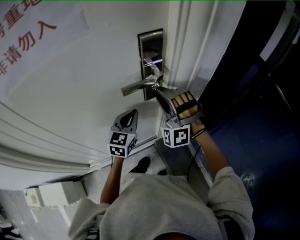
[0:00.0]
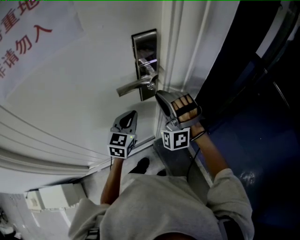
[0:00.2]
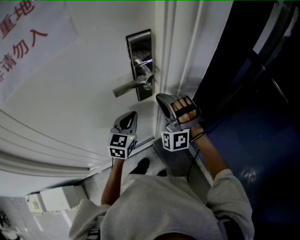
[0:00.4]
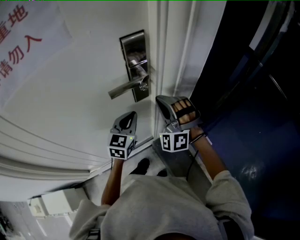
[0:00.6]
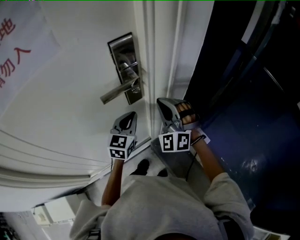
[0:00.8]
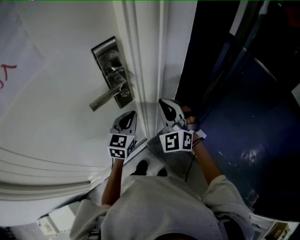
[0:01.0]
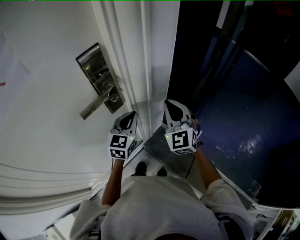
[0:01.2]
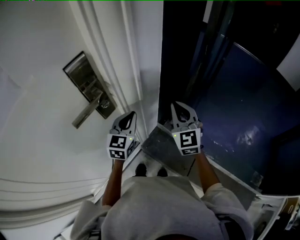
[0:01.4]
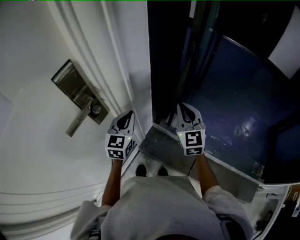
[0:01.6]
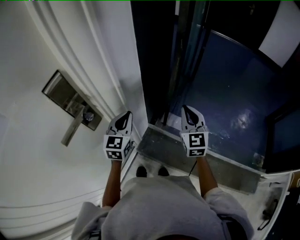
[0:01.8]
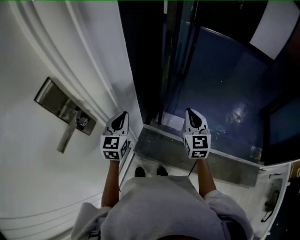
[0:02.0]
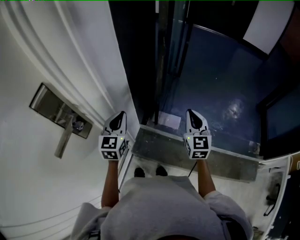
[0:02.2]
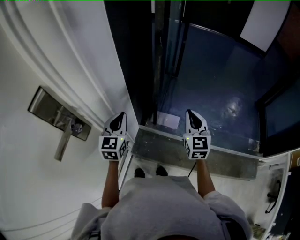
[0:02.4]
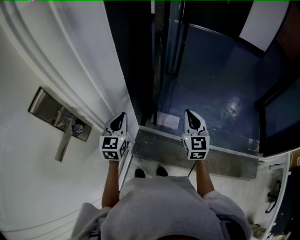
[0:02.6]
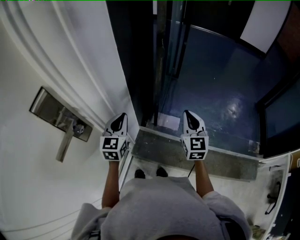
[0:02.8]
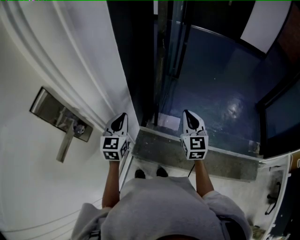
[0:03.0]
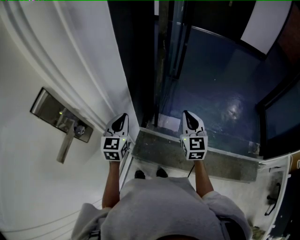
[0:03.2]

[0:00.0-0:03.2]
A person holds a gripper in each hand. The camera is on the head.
0:00.0 to 0:01.6: The left gripper changes place by roughly 20 cm, and swivels roughly 30 degrees, while the right gripper ends up about 30 cm from where it was, rotates around the line of its fingers by some 70 degrees, clockwise from behind, and closes up.
0:01.6 to 0:03.2: The right gripper is displaced to the right by some 10 cm, and rotates roughly 20 degrees; the left gripper changes place by approximately 5 cm.

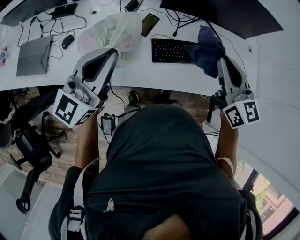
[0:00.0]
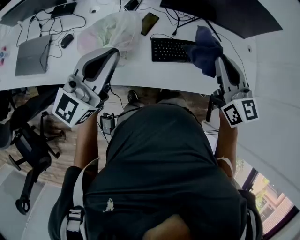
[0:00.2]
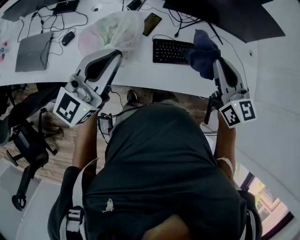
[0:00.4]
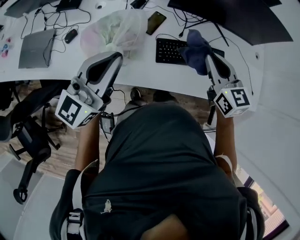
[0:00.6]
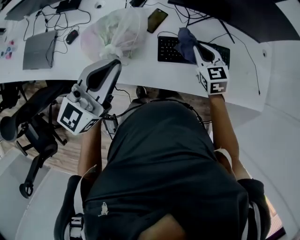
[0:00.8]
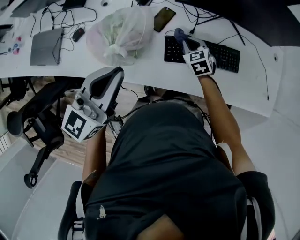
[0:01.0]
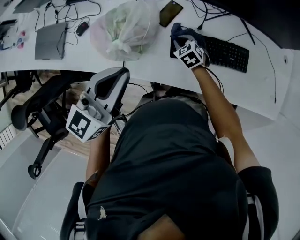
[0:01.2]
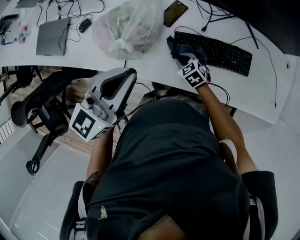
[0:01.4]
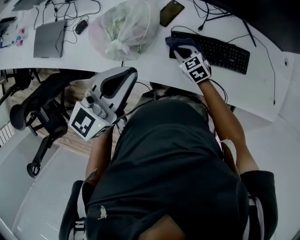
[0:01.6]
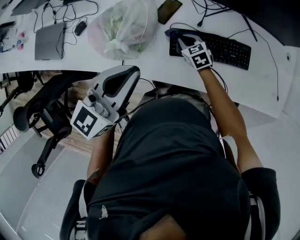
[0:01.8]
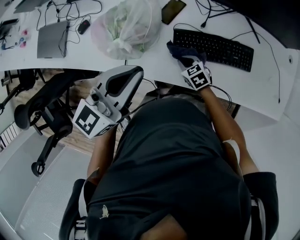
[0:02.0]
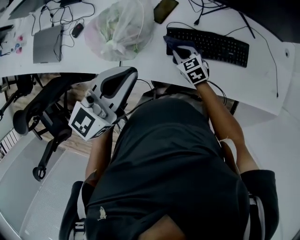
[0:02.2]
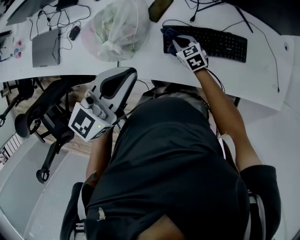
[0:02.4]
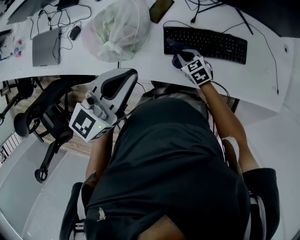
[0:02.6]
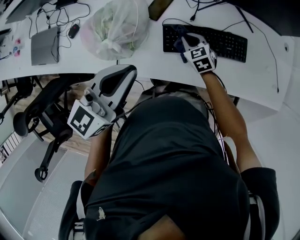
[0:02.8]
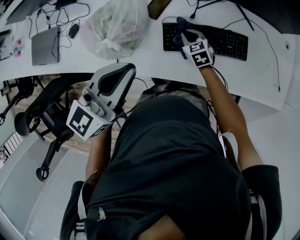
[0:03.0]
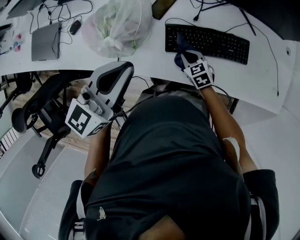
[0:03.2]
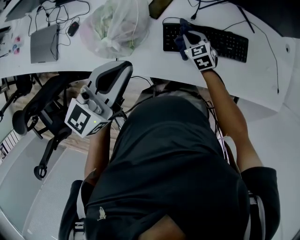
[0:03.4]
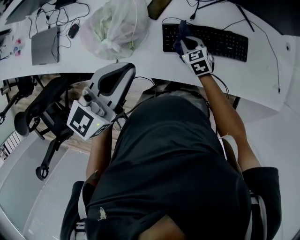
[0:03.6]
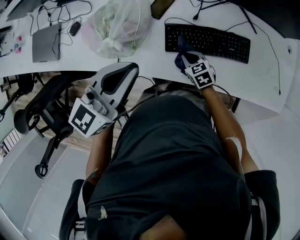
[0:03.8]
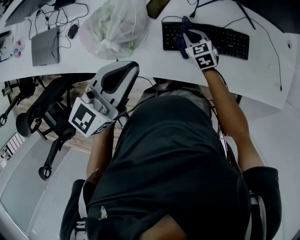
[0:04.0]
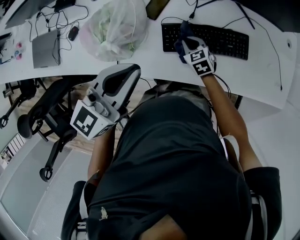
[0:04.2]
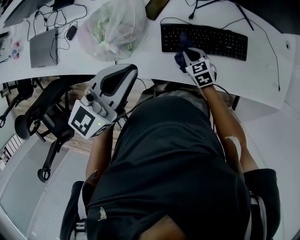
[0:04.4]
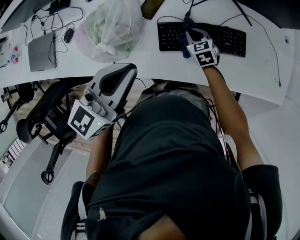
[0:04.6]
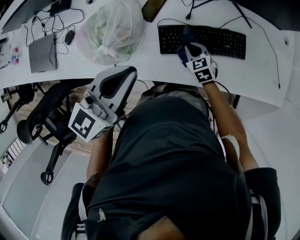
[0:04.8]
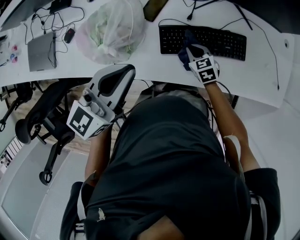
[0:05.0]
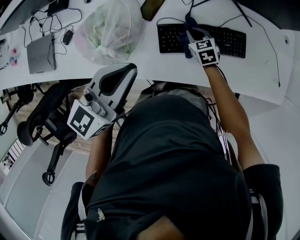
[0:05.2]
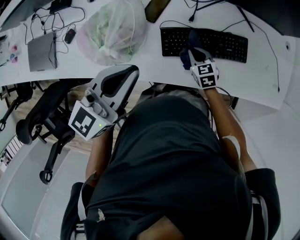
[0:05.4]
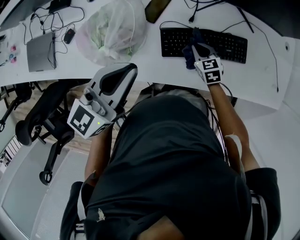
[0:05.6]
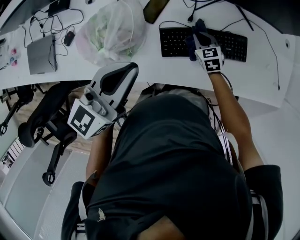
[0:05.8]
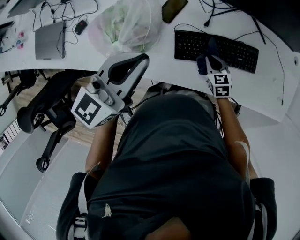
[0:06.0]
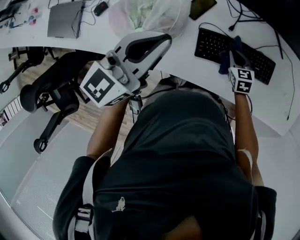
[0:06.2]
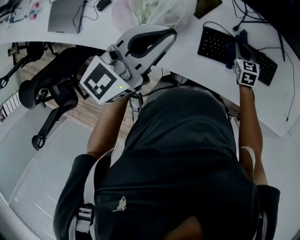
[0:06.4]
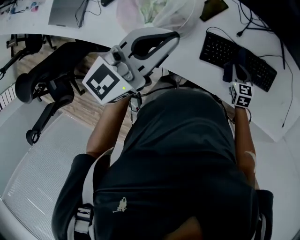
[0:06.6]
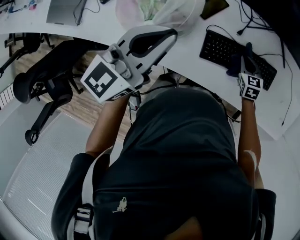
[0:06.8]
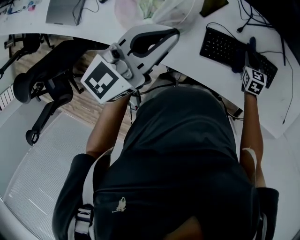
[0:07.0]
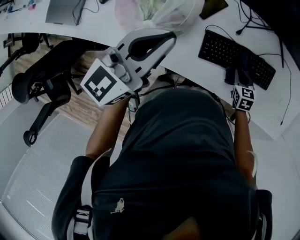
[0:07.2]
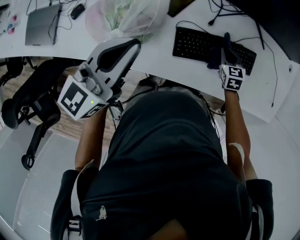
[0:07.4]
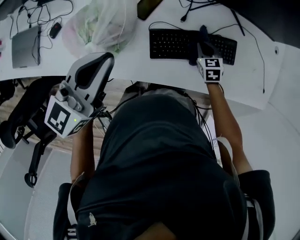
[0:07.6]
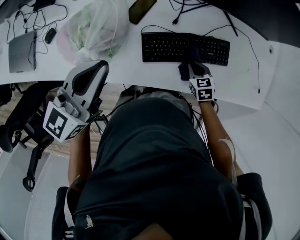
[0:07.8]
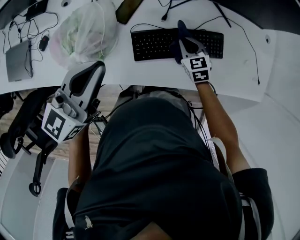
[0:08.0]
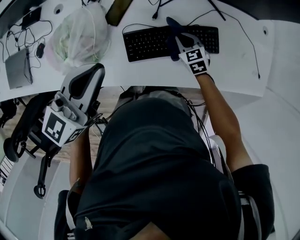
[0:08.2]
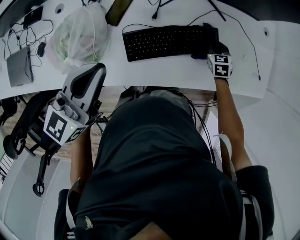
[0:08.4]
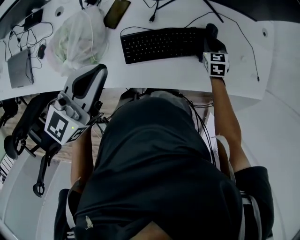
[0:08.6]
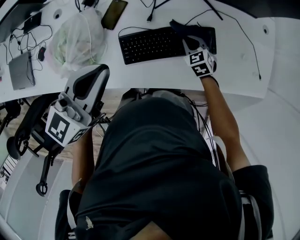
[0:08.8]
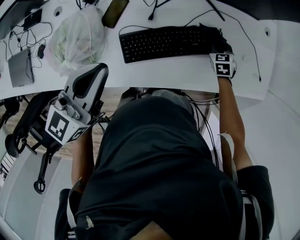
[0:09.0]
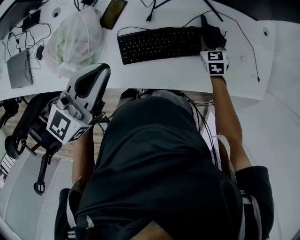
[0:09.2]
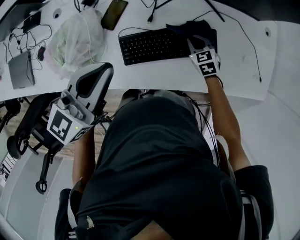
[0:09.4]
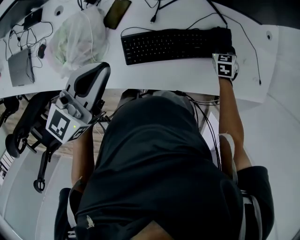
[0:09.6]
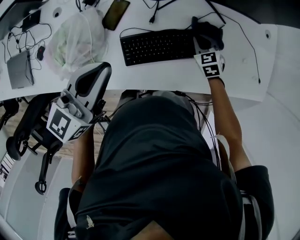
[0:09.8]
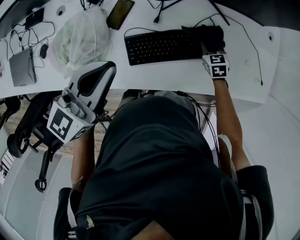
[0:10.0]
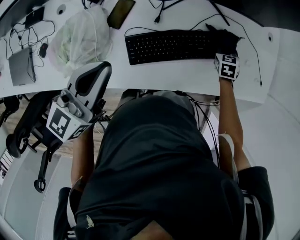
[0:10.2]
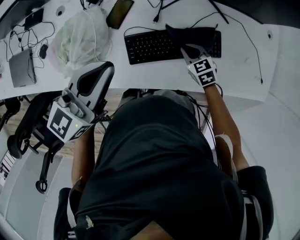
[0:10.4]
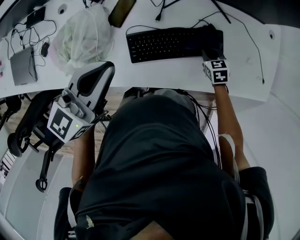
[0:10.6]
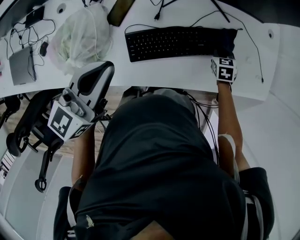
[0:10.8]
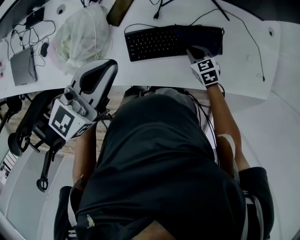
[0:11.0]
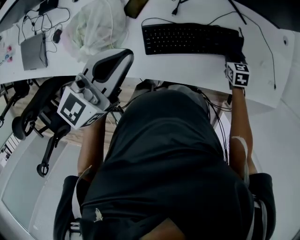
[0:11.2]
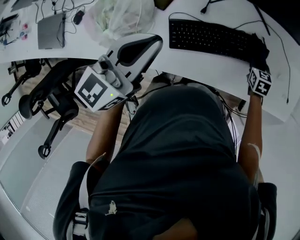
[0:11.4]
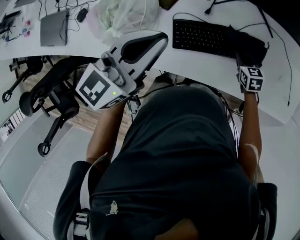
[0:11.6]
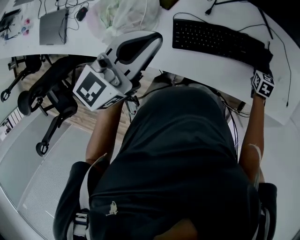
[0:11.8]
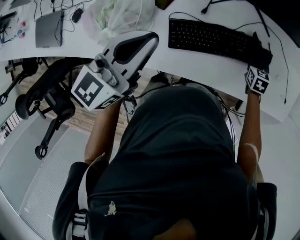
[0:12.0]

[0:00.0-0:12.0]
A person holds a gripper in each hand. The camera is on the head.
0:00.0 to 0:01.6: The right gripper shifts about 40 cm downward, and angles its fingers downward, by roughly 40 degrees. Meanwhile the left gripper moves to the right and downward, roughly 10 cm.
0:01.6 to 0:03.0: The right gripper goes forward and backward, some 10 cm each way, reversing 4 times.
0:03.0 to 0:04.4: The right gripper moves forward and backward over approximately 10 cm, changing direction 4 times.
0:04.4 to 0:06.0: The left gripper shifts roughly 5 cm forward. The right gripper goes forward and backward, about 10 cm each way, reversing 5 times.
0:06.0 to 0:07.6: The right gripper moves forward and backward over some 10 cm, changing direction 4 times.
0:07.6 to 0:09.0: The left gripper travels to the right by roughly 10 cm, while the right gripper moves left and right over approximately 20 cm, changing direction 2 times.
0:09.0 to 0:10.4: The right gripper moves left and right over approximately 15 cm, changing direction 4 times, and swivels about 30 degrees.
0:10.4 to 0:12.0: The right gripper moves left and right over some 15 cm, changing direction 4 times, and turns by about 30 degrees.

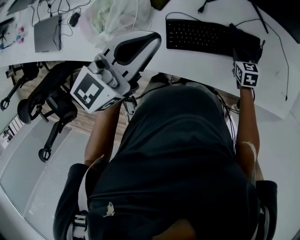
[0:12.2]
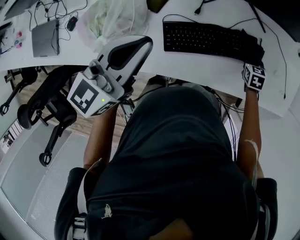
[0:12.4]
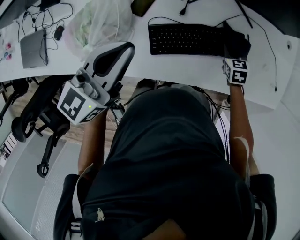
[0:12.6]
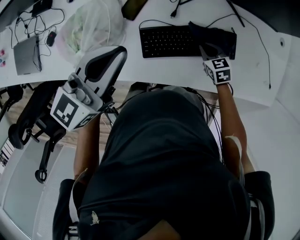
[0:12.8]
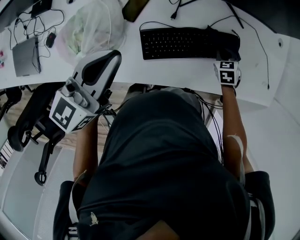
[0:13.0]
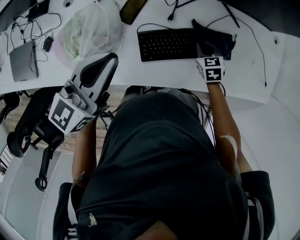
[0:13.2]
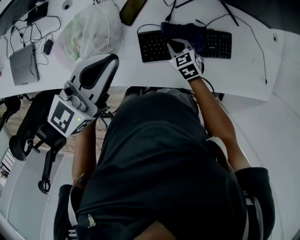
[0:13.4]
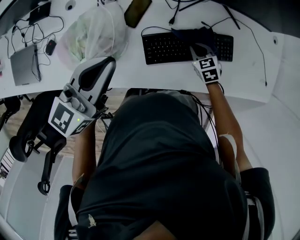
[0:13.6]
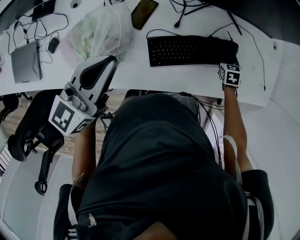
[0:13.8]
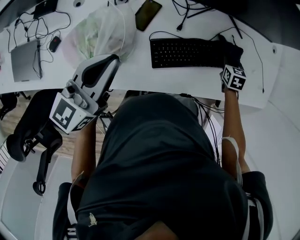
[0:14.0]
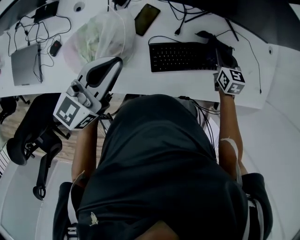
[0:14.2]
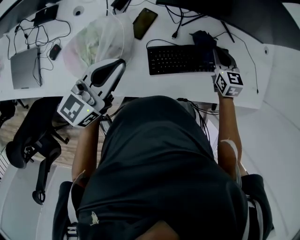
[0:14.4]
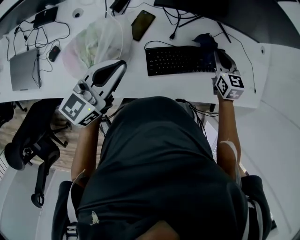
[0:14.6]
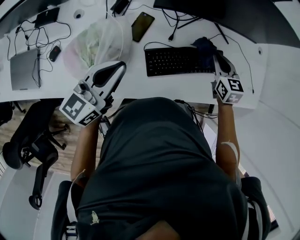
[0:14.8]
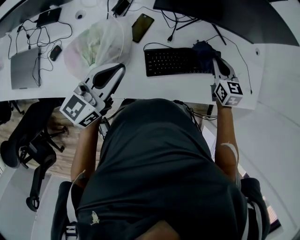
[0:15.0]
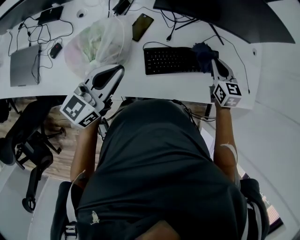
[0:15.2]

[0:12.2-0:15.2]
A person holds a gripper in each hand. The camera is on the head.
0:12.2 to 0:13.8: The left gripper moves to the left, roughly 10 cm, while the right gripper swings left and right, about 25 cm each way, with 4 reversals.
0:13.8 to 0:15.2: The left gripper travels backward by approximately 5 cm; the right gripper goes about 20 cm upward and to the left, and rotates about 30 degrees.

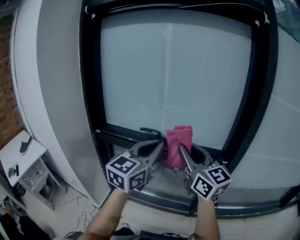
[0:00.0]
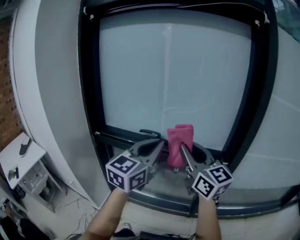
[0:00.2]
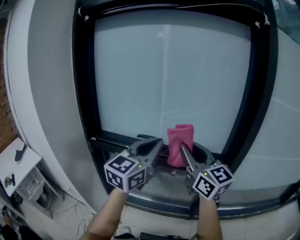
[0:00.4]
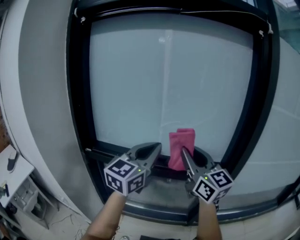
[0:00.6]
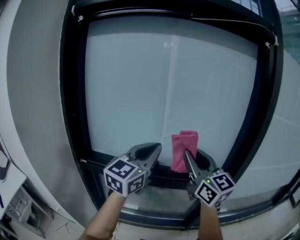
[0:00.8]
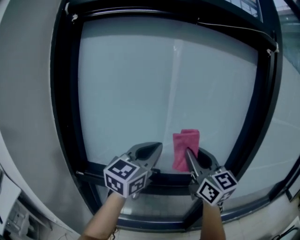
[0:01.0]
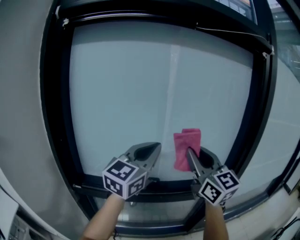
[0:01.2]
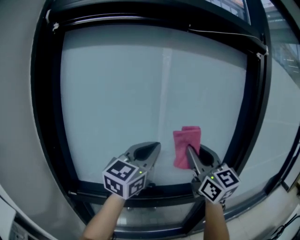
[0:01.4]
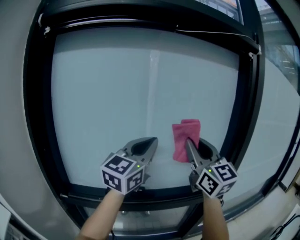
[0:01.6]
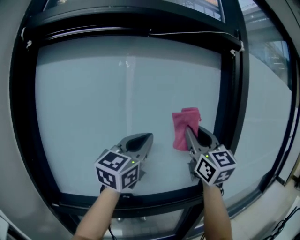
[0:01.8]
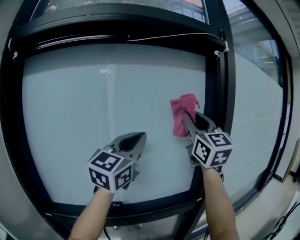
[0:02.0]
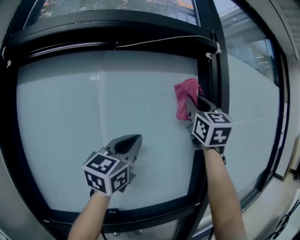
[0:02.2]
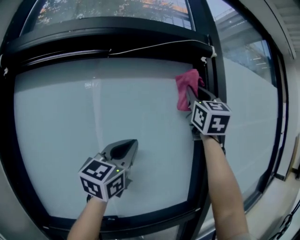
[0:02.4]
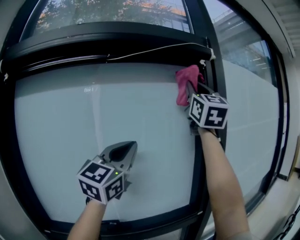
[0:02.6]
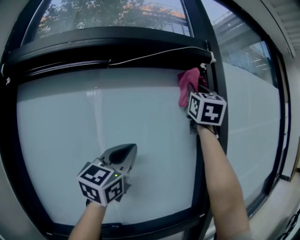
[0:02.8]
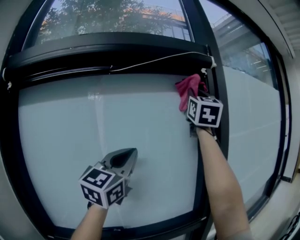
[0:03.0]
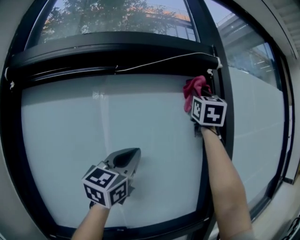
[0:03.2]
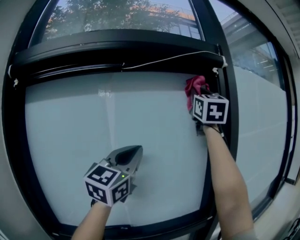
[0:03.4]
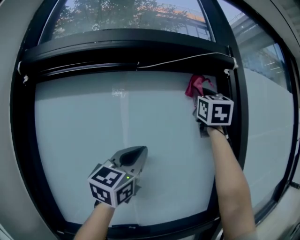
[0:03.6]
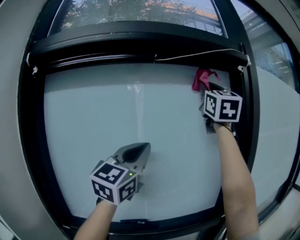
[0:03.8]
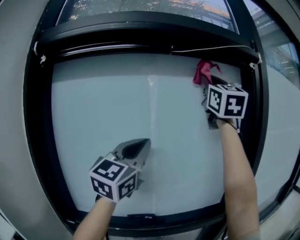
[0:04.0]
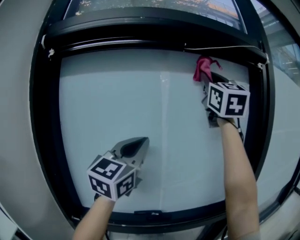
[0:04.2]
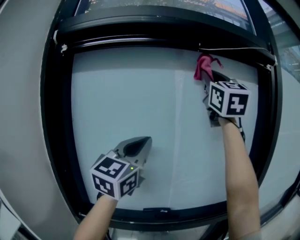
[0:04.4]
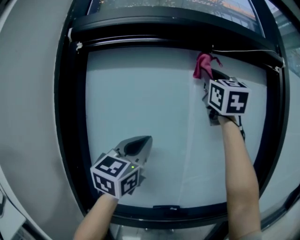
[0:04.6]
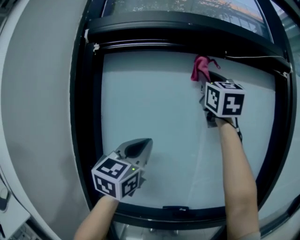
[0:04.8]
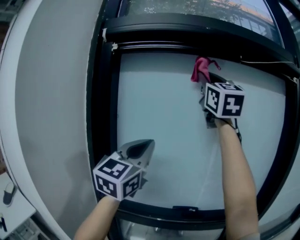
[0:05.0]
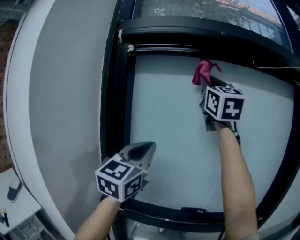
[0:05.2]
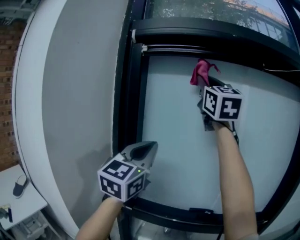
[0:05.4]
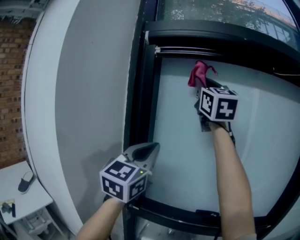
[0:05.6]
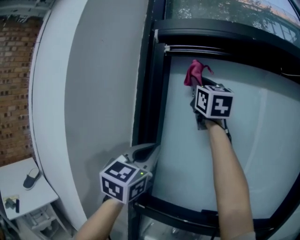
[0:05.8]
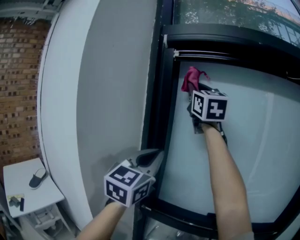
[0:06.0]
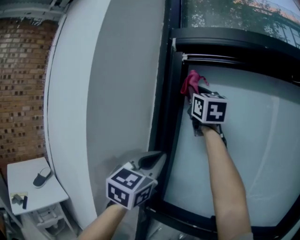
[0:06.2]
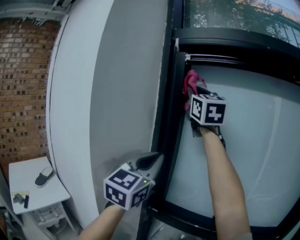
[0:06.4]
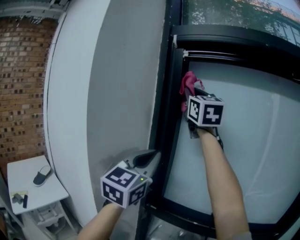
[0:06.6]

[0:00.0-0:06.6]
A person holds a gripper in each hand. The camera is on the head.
0:00.0 to 0:01.6: The left gripper goes approximately 25 cm forward and upward, and swivels about 20 degrees, while the right gripper shifts about 20 cm upward and forward, and rotates about 30 degrees.
0:01.6 to 0:03.2: The left gripper goes roughly 15 cm upward, to the right and forward, while the right gripper goes roughly 35 cm upward, to the right and forward, and turns by approximately 40 degrees.
0:03.2 to 0:05.0: The left gripper shifts by approximately 35 cm, and swivels some 20 degrees; the right gripper moves about 40 cm, and changes its angle by some 30 degrees.
0:05.0 to 0:06.6: The left gripper is displaced to the left by approximately 20 cm, and turns by approximately 20 degrees; the right gripper moves to the left, about 30 cm, and swivels roughly 30 degrees.
